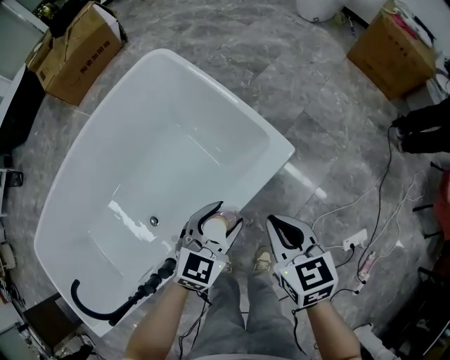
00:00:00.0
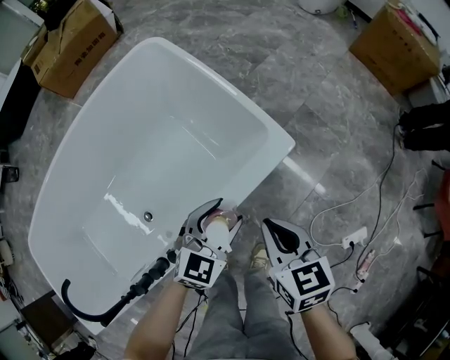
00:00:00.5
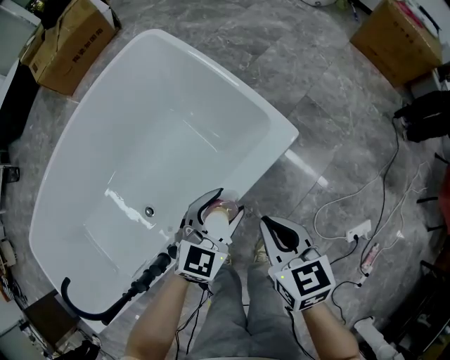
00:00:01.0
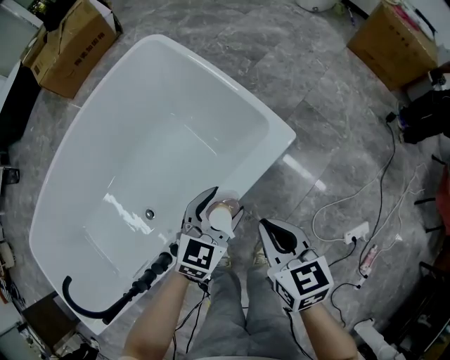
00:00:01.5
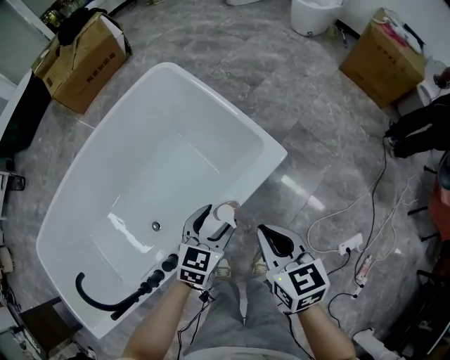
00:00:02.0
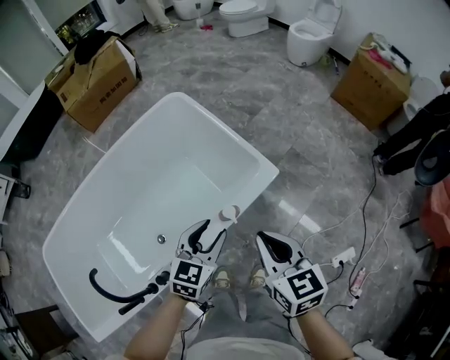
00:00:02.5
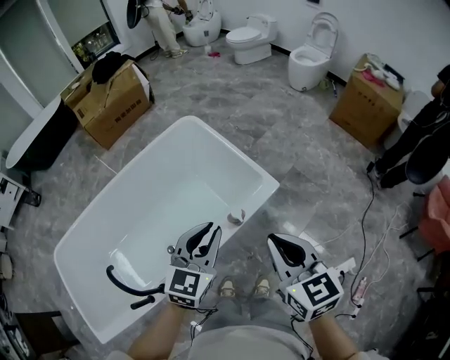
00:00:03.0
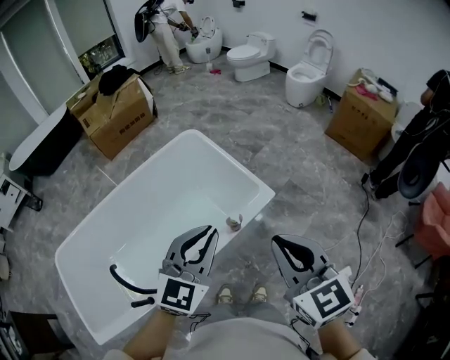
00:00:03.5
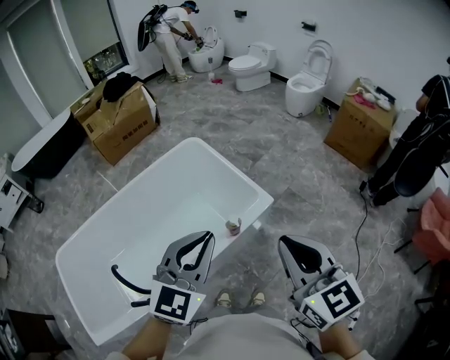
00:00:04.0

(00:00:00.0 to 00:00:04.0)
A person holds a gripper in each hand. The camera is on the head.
00:00:00.0 - 00:00:02.0: The right gripper changes place by about 5 cm.
00:00:02.0 - 00:00:04.0: Both grippers move upward, approximately 40 cm. The right gripper swivels about 30 degrees, while the left gripper changes its angle by roughly 30 degrees, and closes.

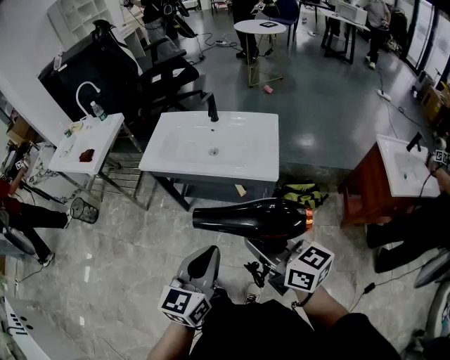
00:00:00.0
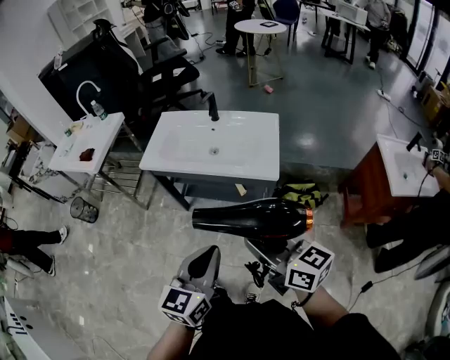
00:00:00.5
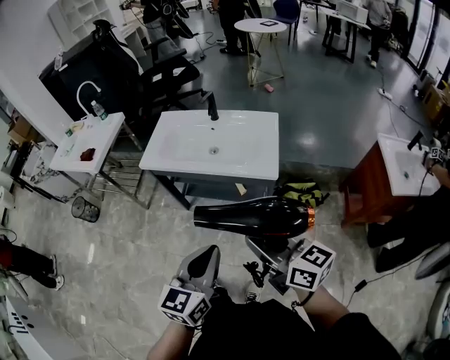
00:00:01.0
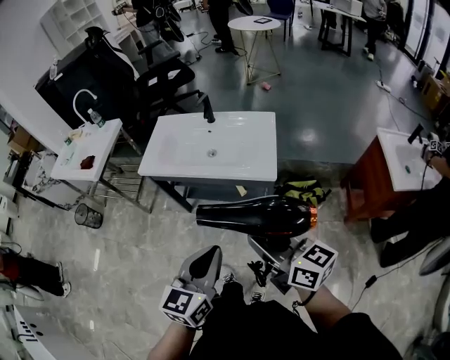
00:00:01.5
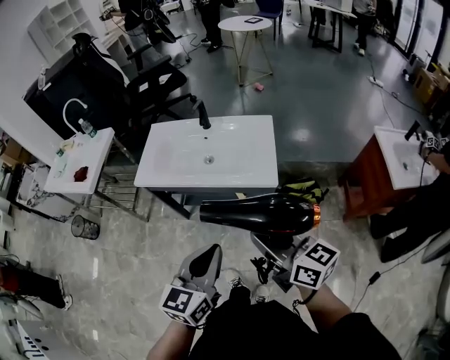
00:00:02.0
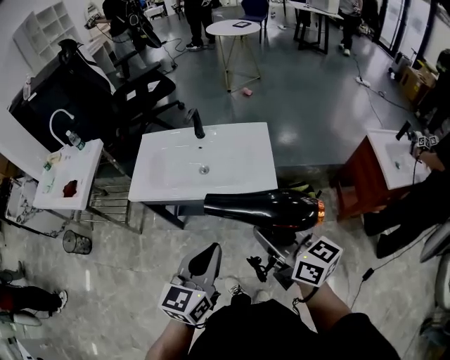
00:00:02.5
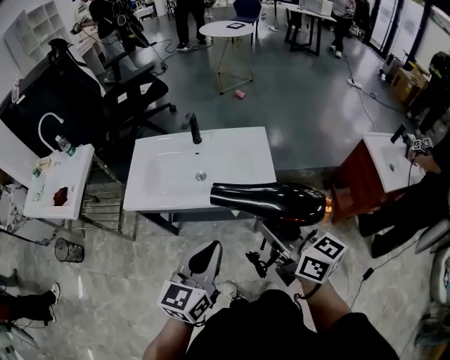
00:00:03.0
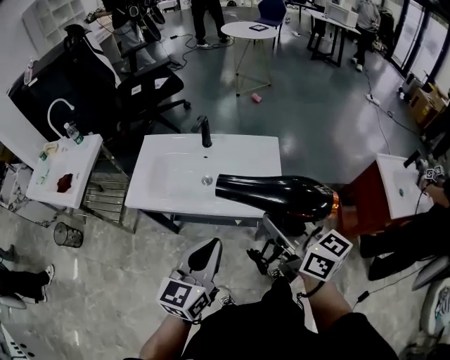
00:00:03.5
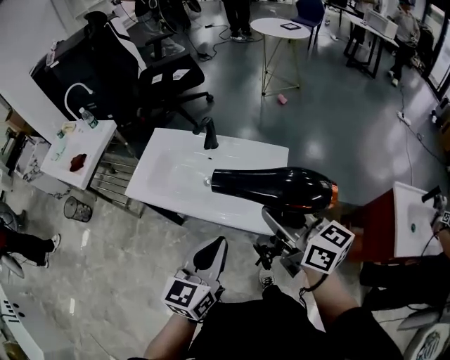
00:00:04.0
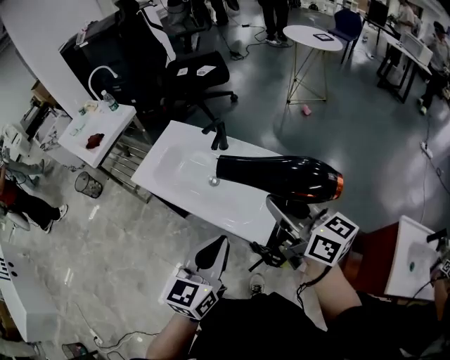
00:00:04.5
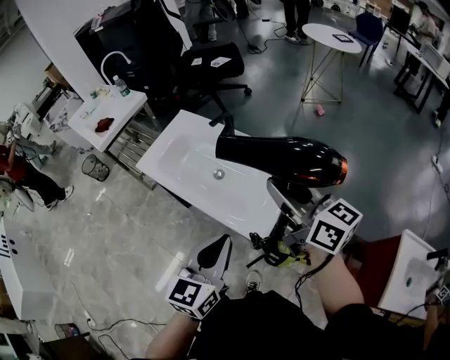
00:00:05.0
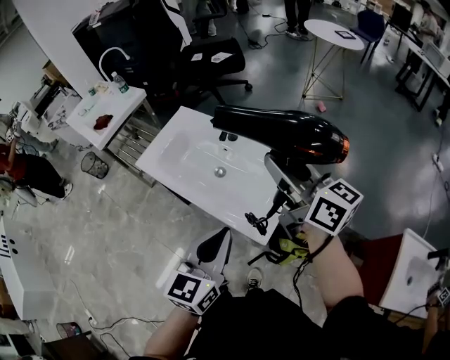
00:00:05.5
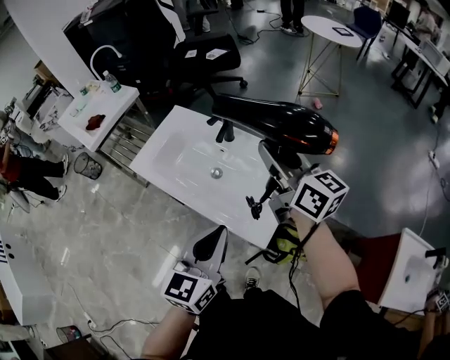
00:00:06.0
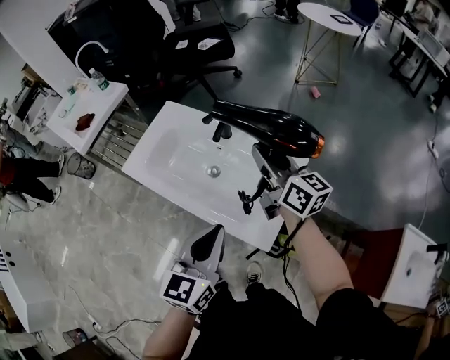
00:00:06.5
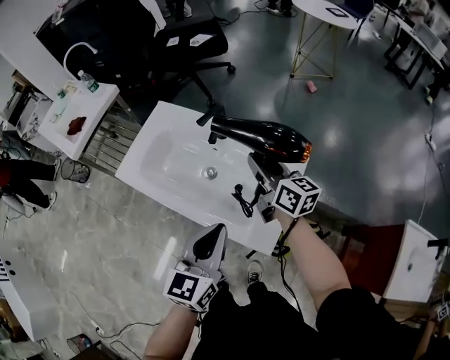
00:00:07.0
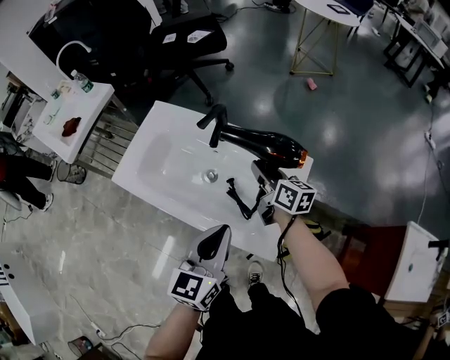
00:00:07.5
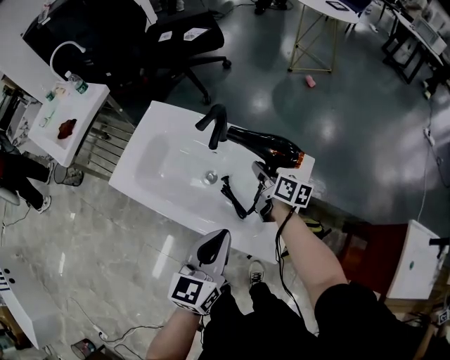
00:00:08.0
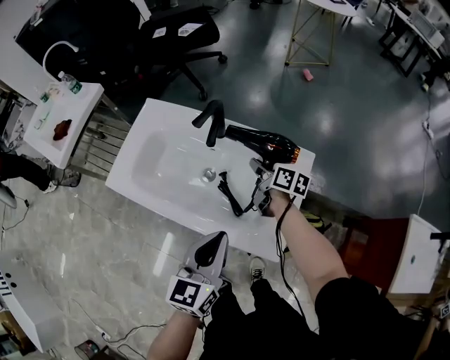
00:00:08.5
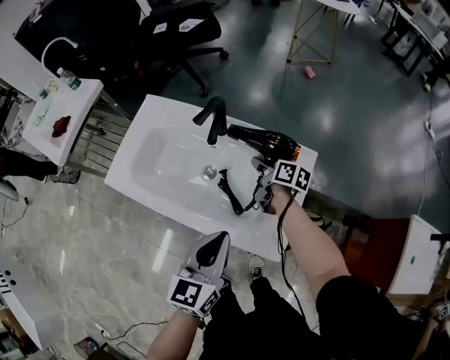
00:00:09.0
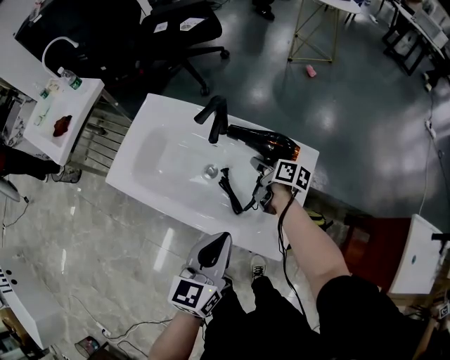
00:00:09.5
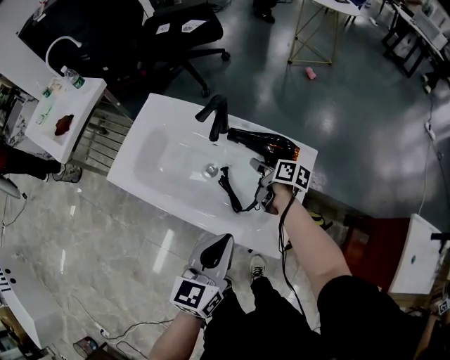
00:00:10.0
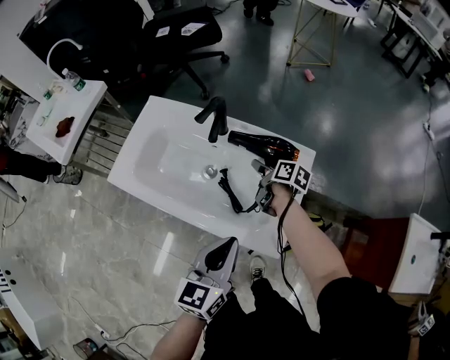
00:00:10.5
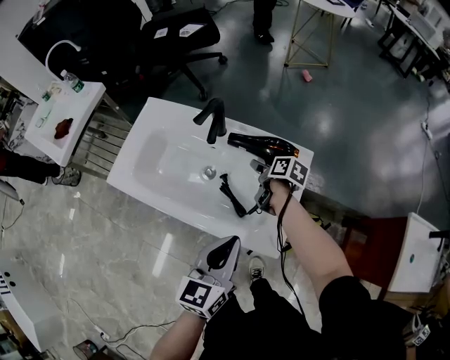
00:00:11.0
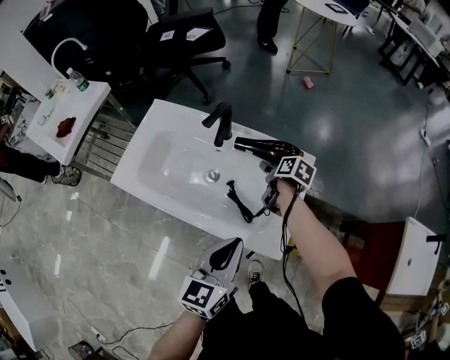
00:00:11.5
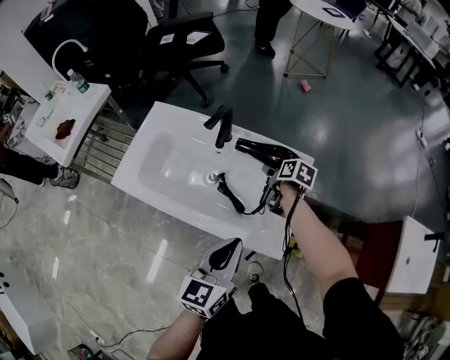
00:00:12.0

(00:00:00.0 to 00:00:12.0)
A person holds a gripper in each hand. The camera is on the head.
00:00:00.0 - 00:00:02.0: The two grippers go about 5 cm forward.
00:00:02.0 - 00:00:04.0: The left gripper is displaced forward and to the right by about 20 cm. The right gripper heads forward, covering about 25 cm.
00:00:04.0 - 00:00:06.0: The left gripper goes approximately 5 cm to the right, while the right gripper travels forward by about 20 cm.
00:00:06.0 - 00:00:08.0: The left gripper heads downward and forward, covering roughly 15 cm. Meanwhile the right gripper shifts about 30 cm downward, and changes its angle by roughly 40 degrees.
00:00:08.0 - 00:00:10.0: The right gripper is displaced downward by approximately 5 cm.
00:00:10.0 - 00:00:12.0: The right gripper moves to the right, about 5 cm, turns by some 20 degrees, and opens its fingers.

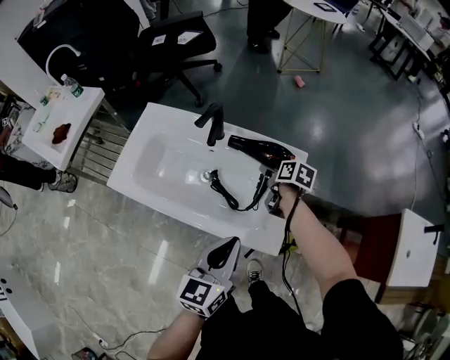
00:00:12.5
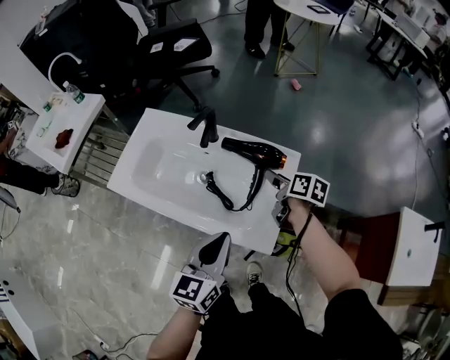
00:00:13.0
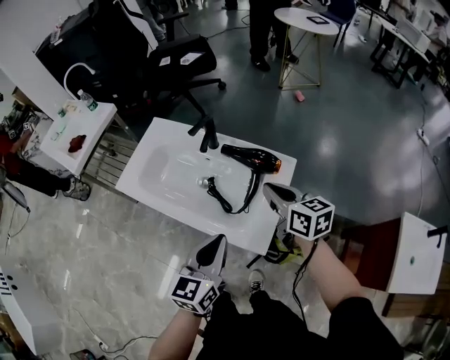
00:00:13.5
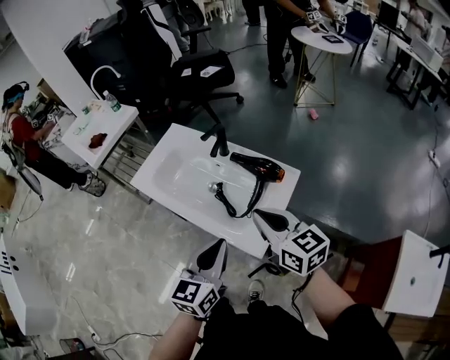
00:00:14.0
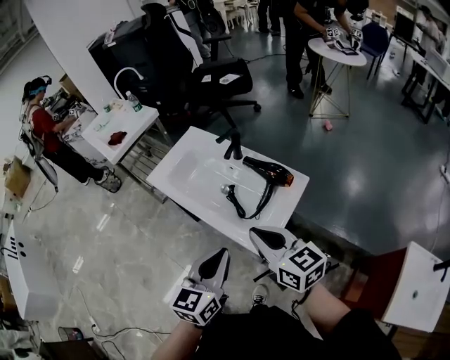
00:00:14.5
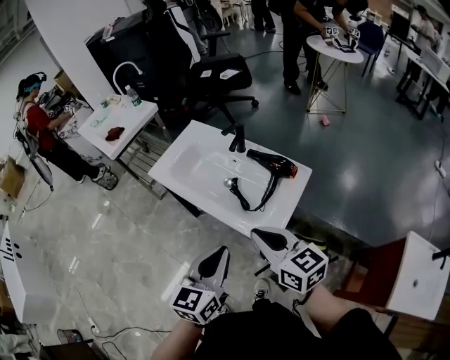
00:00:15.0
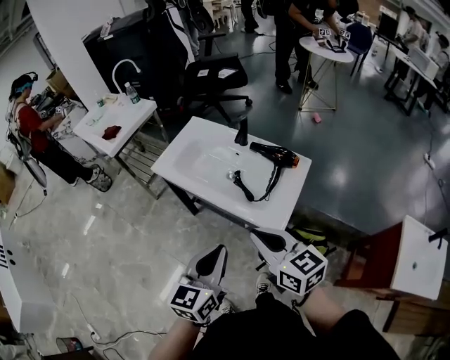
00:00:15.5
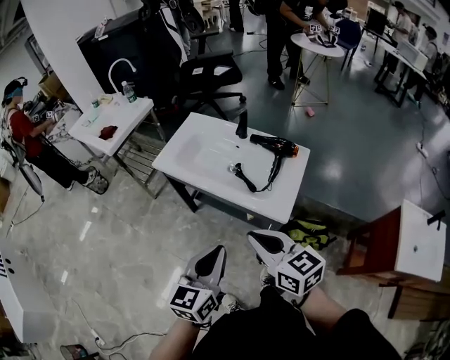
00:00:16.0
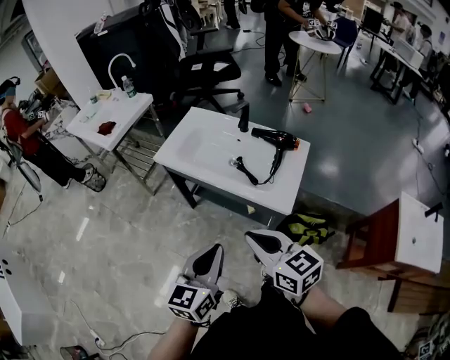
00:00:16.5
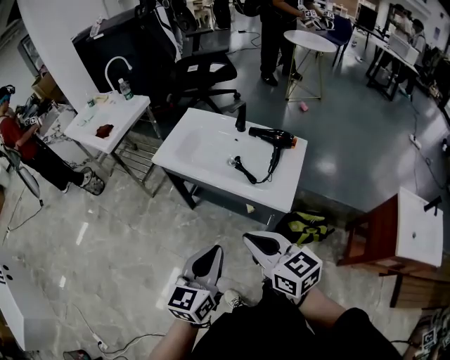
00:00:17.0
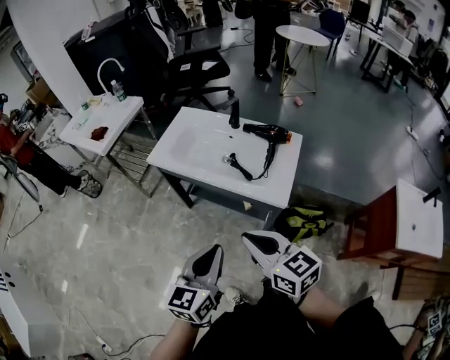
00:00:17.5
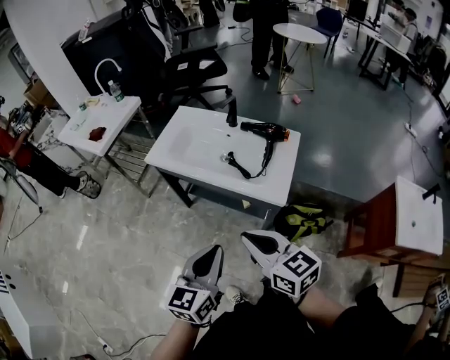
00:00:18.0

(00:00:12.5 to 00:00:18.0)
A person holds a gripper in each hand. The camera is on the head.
00:00:12.5 - 00:00:14.5: The left gripper shifts by roughly 15 cm, and changes its angle by some 20 degrees. The right gripper moves upward, approximately 25 cm, points its fingers about 40 degrees further upward, and closes its fingers.
00:00:14.5 - 00:00:16.0: The grippers both shift to the left and backward by roughly 15 cm.
00:00:16.0 - 00:00:18.0: The right gripper shifts by approximately 5 cm.

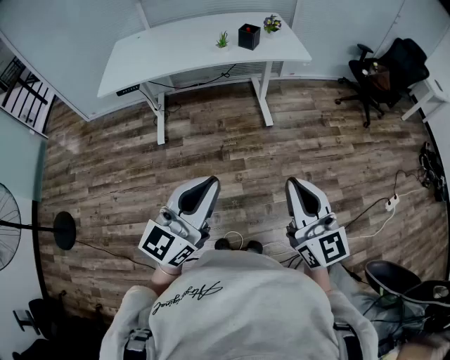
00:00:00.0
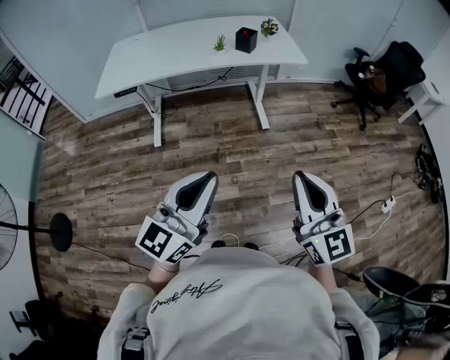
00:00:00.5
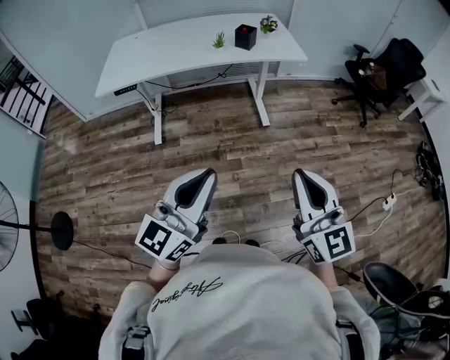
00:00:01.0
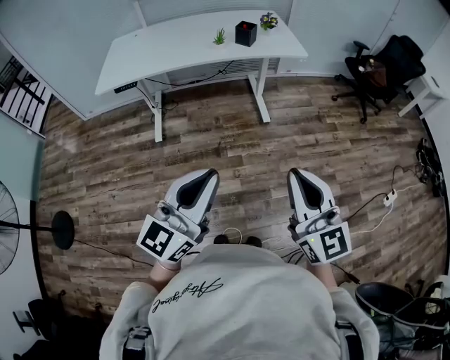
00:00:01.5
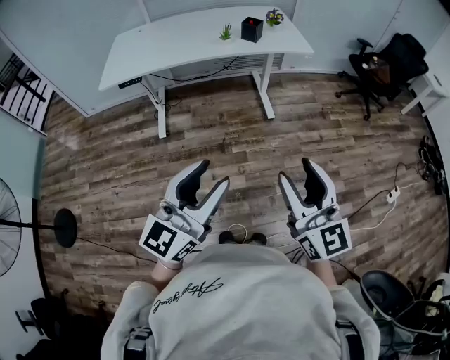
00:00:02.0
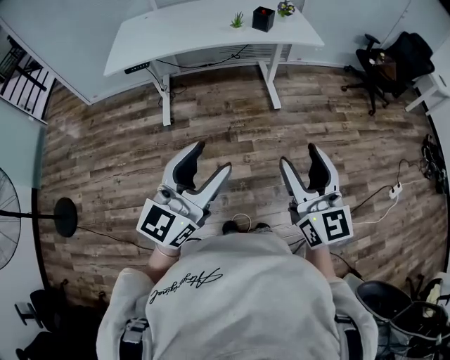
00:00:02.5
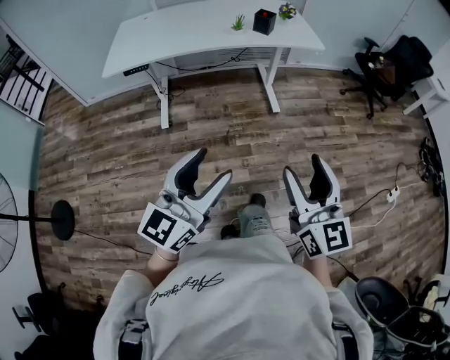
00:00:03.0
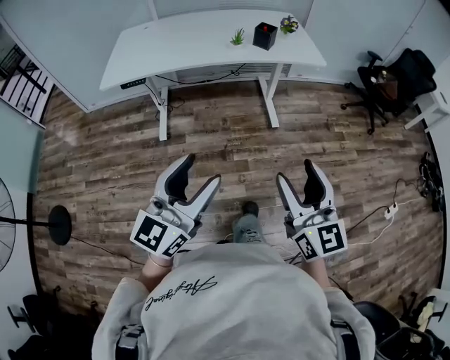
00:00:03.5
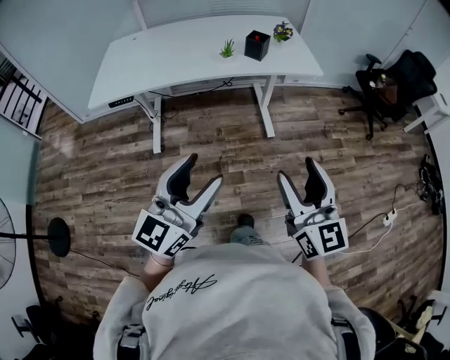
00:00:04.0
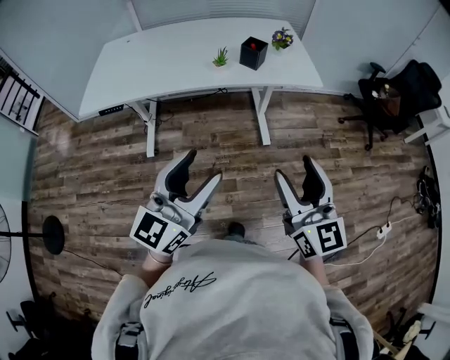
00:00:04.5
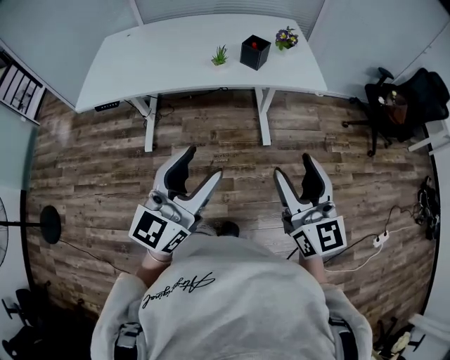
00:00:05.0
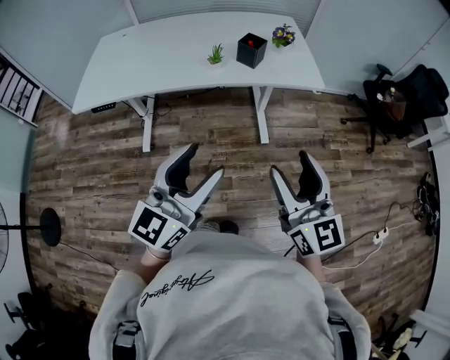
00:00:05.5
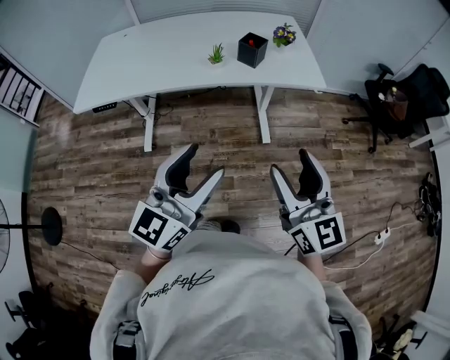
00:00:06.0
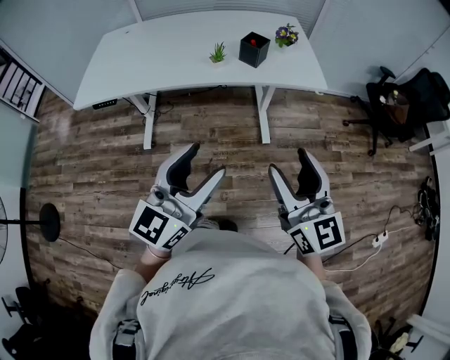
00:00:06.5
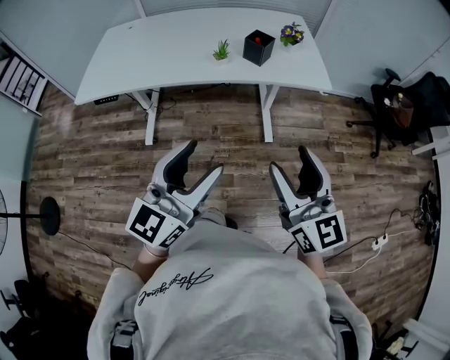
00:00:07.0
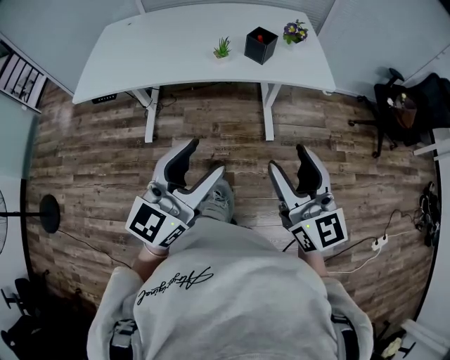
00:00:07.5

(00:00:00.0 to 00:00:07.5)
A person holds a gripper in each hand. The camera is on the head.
00:00:00.0 - 00:00:02.0: The left gripper opens up, while the right gripper opens.
00:00:02.0 - 00:00:04.0: The grippers both shift forward by roughly 15 cm.
00:00:04.0 - 00:00:05.5: The left gripper heads forward and to the right, covering about 15 cm. The right gripper travels forward by some 15 cm.
00:00:05.5 - 00:00:07.5: The grippers make only small movements.
